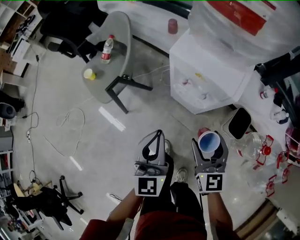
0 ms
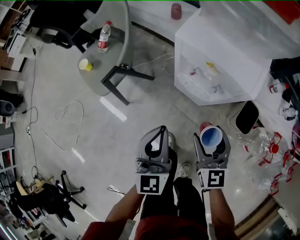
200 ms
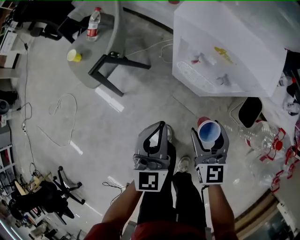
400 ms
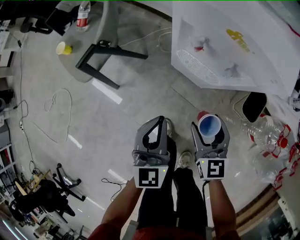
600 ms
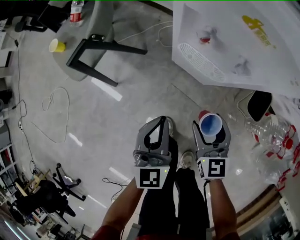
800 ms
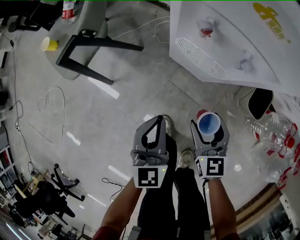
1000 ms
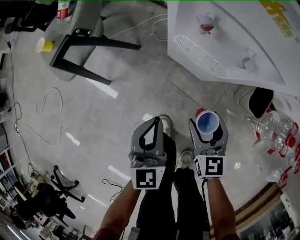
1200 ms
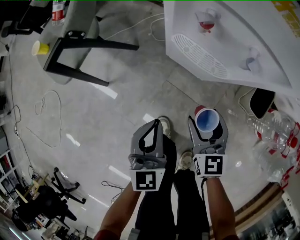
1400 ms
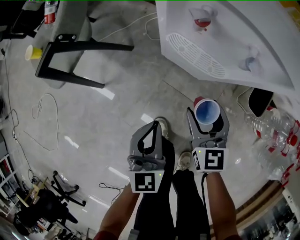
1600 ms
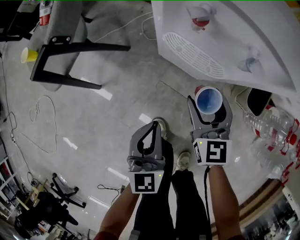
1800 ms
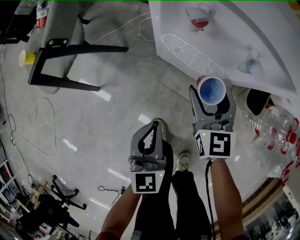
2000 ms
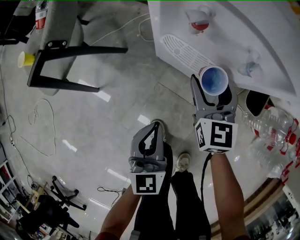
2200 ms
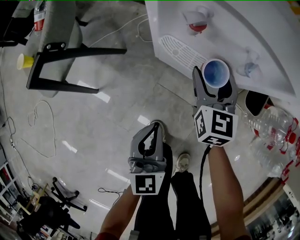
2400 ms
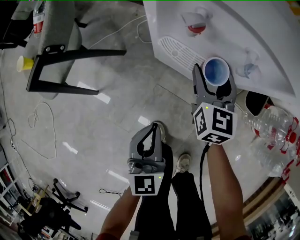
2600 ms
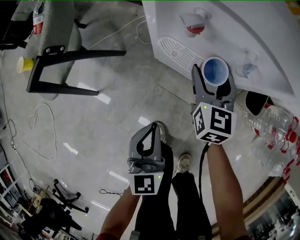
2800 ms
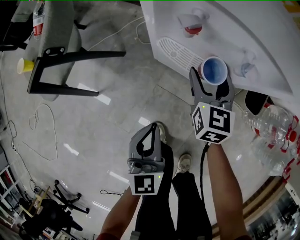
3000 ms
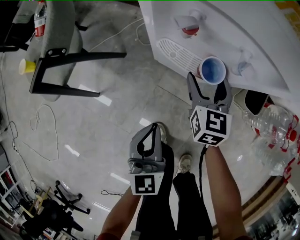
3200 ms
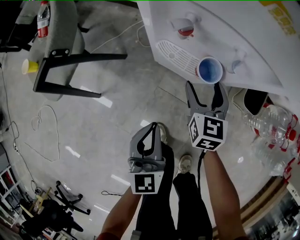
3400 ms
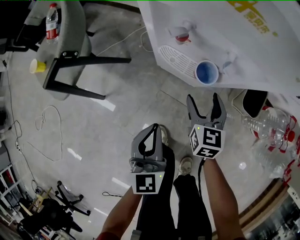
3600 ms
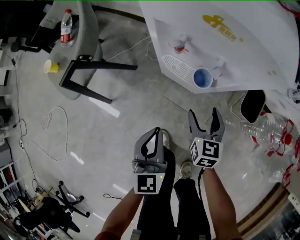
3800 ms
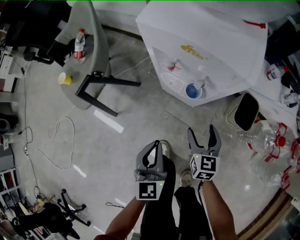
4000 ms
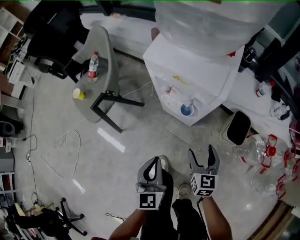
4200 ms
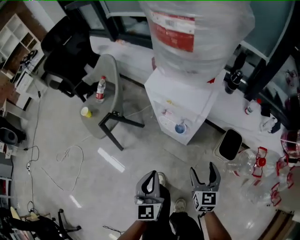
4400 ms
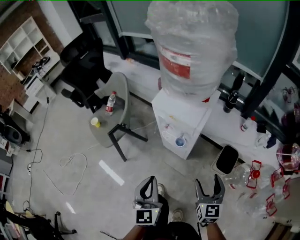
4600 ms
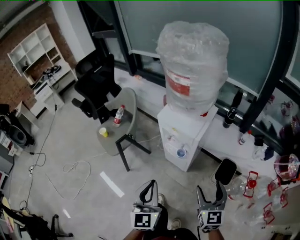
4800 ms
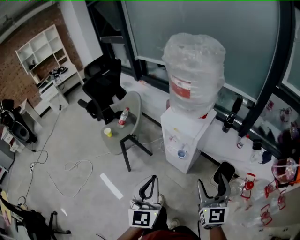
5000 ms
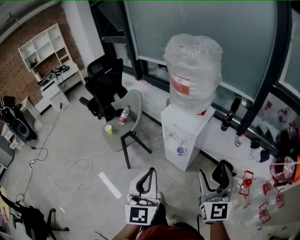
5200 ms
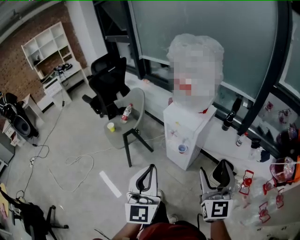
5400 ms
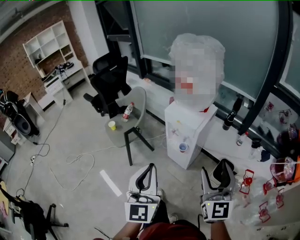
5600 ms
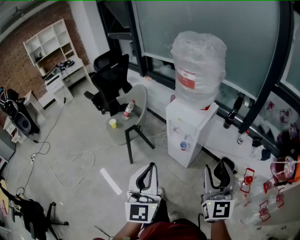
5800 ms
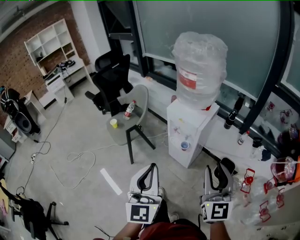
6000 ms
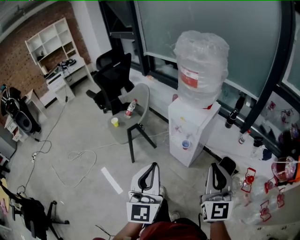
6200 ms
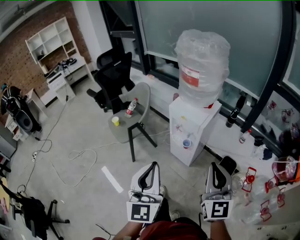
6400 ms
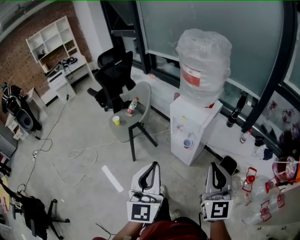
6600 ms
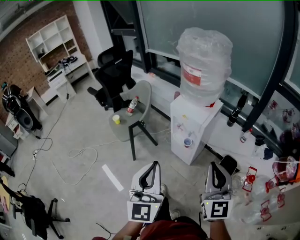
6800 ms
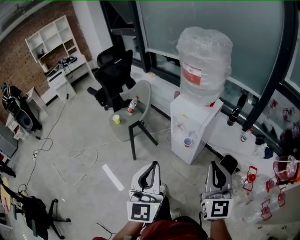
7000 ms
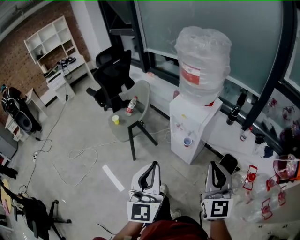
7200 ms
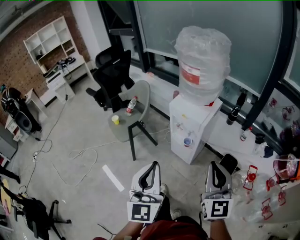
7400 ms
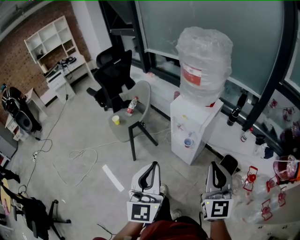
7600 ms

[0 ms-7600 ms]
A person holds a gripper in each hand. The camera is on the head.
0 ms to 1600 ms: Both grippers move downward, roughly 35 cm.
1600 ms to 3000 ms: The right gripper heads forward, covering some 15 cm.
3000 ms to 4600 ms: The right gripper travels upward and backward by roughly 40 cm. Meanwhile the left gripper travels upward by about 35 cm.
4600 ms to 6000 ms: The right gripper shifts approximately 25 cm upward, turns by some 30 degrees, and closes up, while the left gripper travels upward and backward by roughly 25 cm, and changes its angle by roughly 20 degrees.
6000 ms to 7600 ms: The right gripper closes.

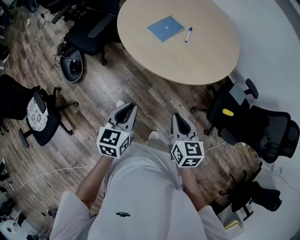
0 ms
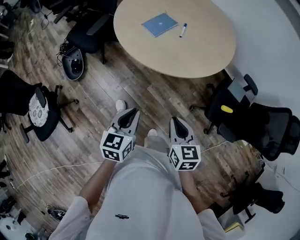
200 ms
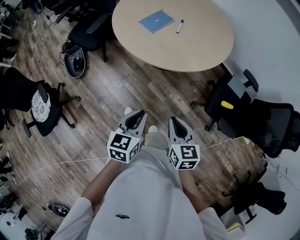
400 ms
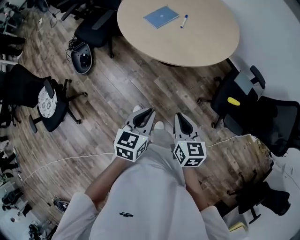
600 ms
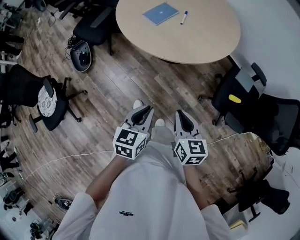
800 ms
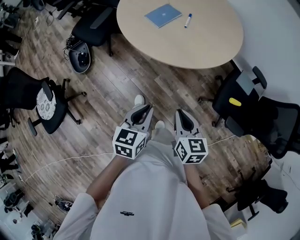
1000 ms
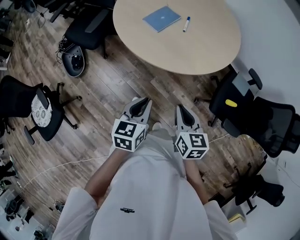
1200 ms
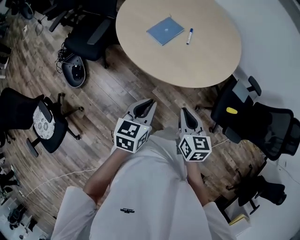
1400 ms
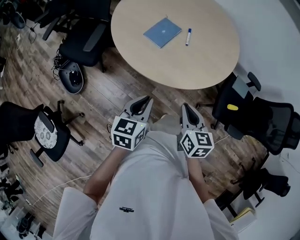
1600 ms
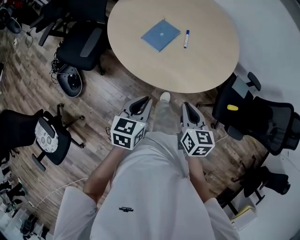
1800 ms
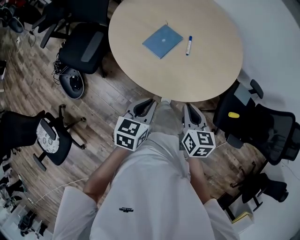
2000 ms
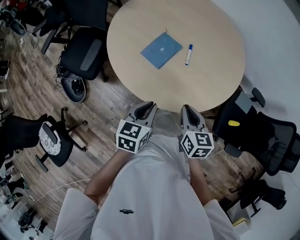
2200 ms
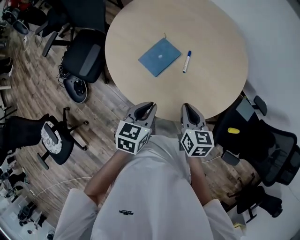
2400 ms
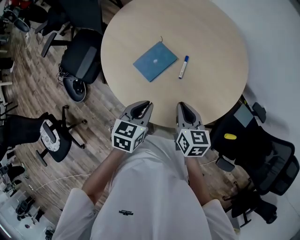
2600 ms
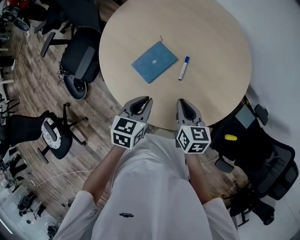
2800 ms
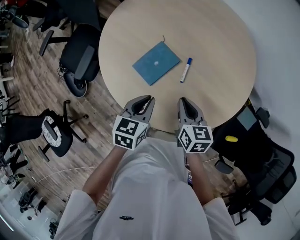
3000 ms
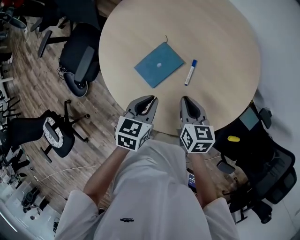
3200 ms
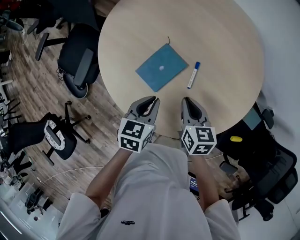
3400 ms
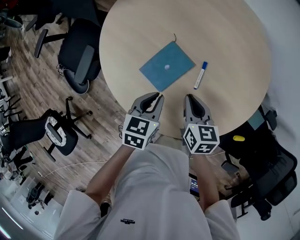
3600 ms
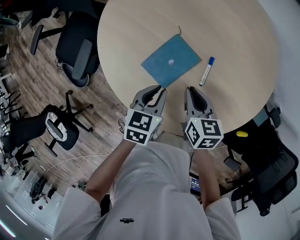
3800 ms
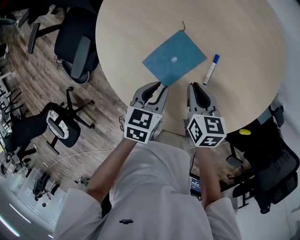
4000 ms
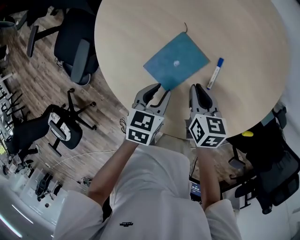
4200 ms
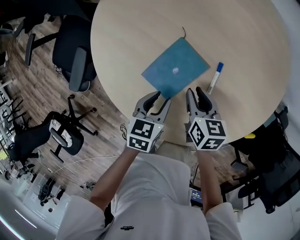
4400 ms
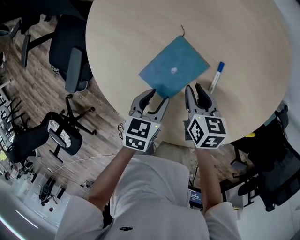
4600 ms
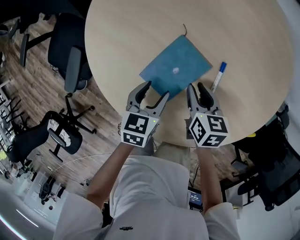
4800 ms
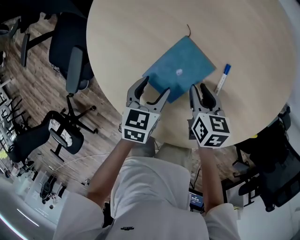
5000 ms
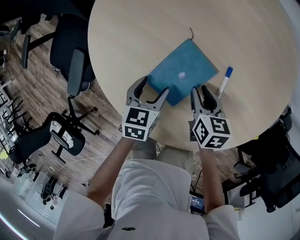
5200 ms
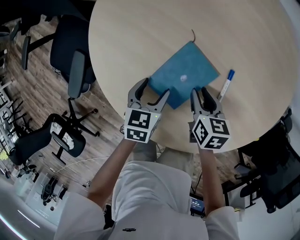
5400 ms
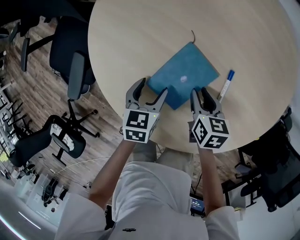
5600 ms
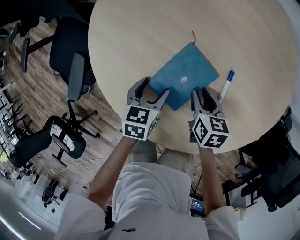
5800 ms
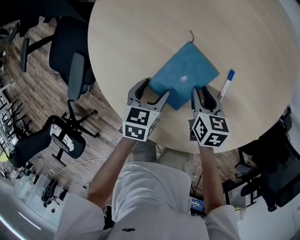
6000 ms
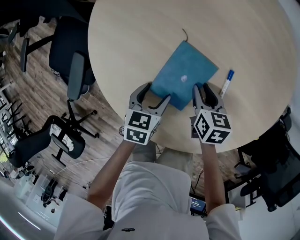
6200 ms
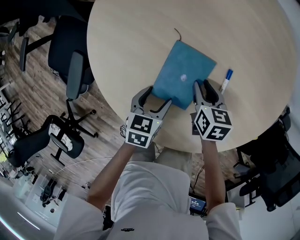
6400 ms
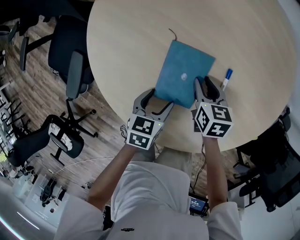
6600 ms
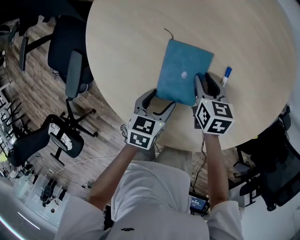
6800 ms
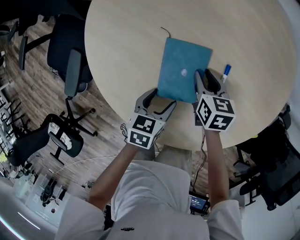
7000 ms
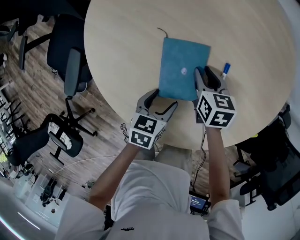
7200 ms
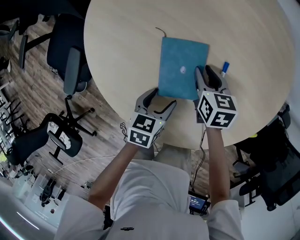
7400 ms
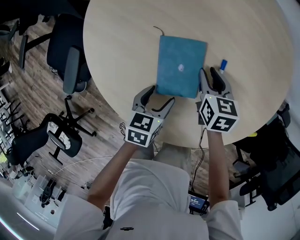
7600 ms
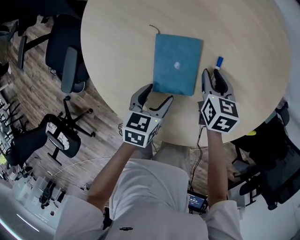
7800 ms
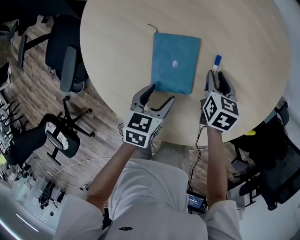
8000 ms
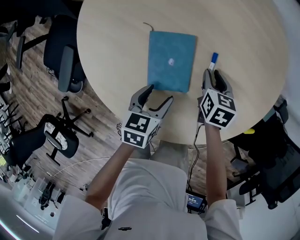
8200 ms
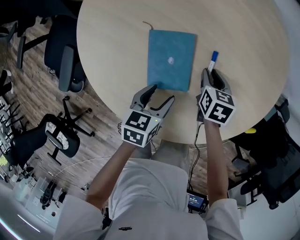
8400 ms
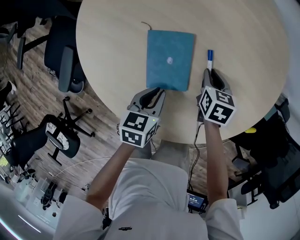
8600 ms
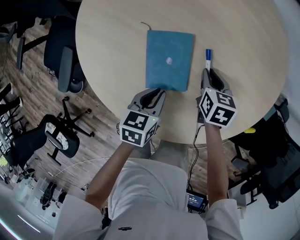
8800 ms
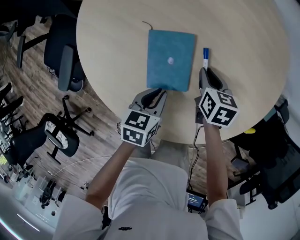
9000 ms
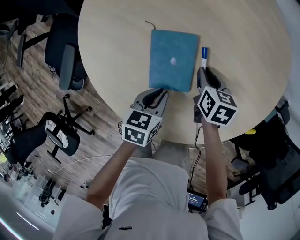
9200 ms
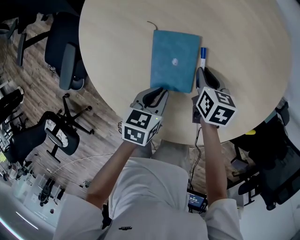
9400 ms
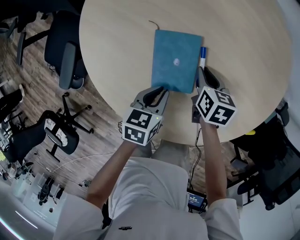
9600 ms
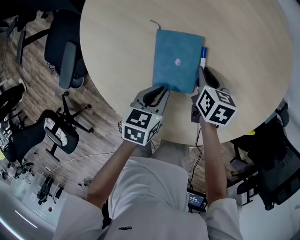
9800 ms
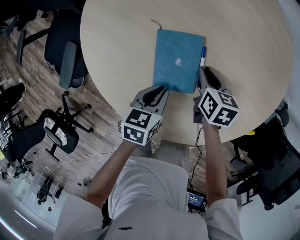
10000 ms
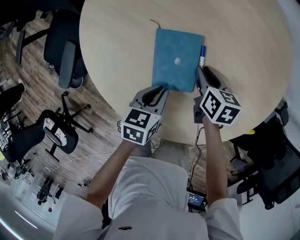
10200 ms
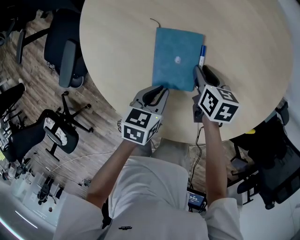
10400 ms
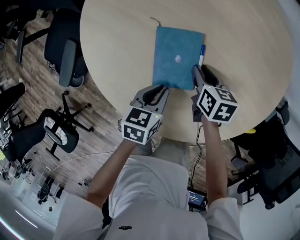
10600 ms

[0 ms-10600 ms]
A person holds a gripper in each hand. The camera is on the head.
0 ms to 1600 ms: Both grippers move forward, about 10 cm.
1600 ms to 3000 ms: The grippers both shift forward by about 35 cm.
3000 ms to 4600 ms: The right gripper shifts about 25 cm downward, forward and to the left; the left gripper goes roughly 20 cm downward and forward, and opens its fingers.
4600 ms to 6000 ms: The left gripper moves to the left, some 5 cm, and opens. Meanwhile the right gripper ends up about 5 cm from where it was.
6000 ms to 7600 ms: The left gripper heads to the right, covering about 5 cm. Meanwhile the right gripper changes place by approximately 5 cm.
7600 ms to 9000 ms: The left gripper closes.
9000 ms to 10600 ms: The right gripper ends up about 5 cm from where it was.

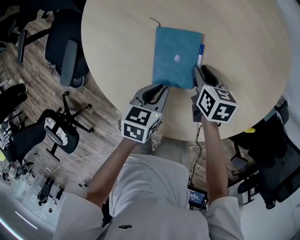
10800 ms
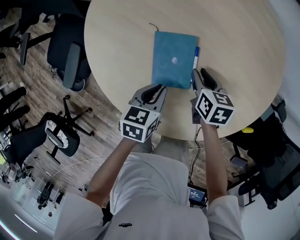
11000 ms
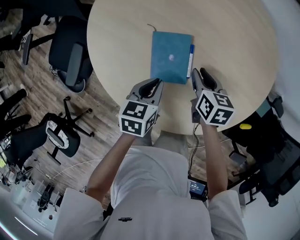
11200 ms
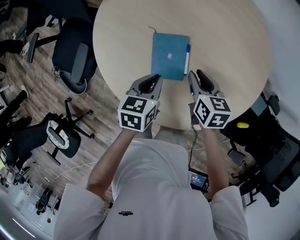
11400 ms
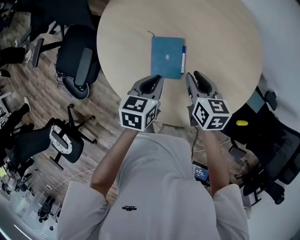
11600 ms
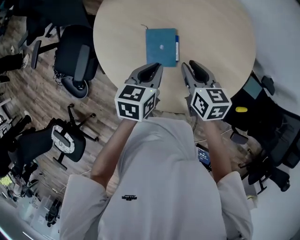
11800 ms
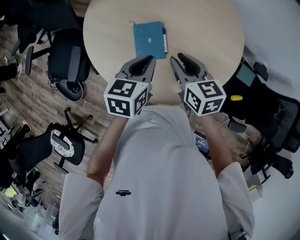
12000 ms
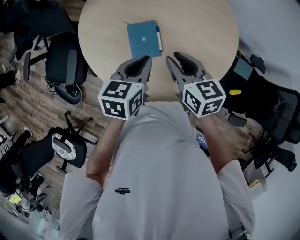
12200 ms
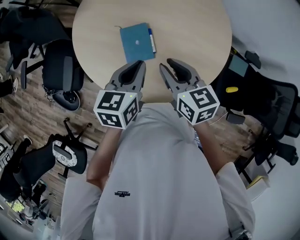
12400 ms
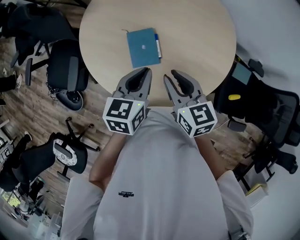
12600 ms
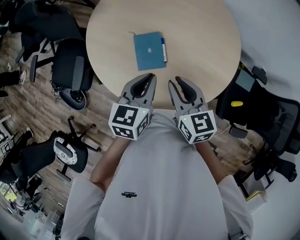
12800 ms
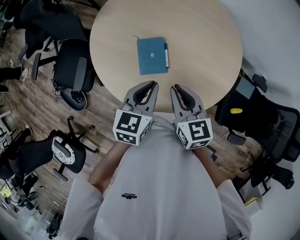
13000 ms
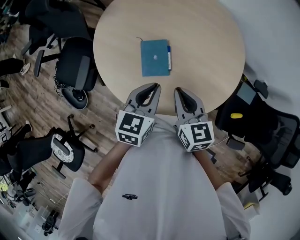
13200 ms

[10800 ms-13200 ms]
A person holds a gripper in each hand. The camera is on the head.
10800 ms to 12000 ms: The right gripper shifts some 30 cm upward and backward, and turns by some 20 degrees. Meanwhile the left gripper moves upward, approximately 25 cm.
12000 ms to 13200 ms: The right gripper heads backward, covering approximately 5 cm, and closes its fingers.

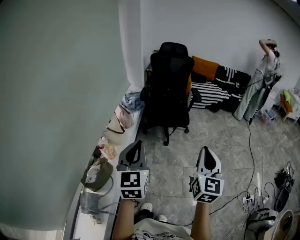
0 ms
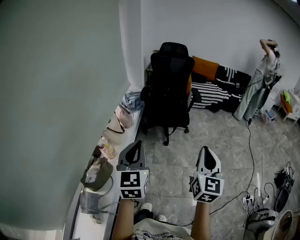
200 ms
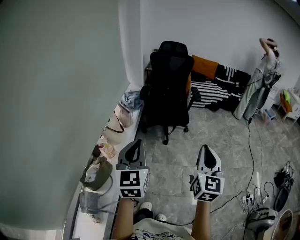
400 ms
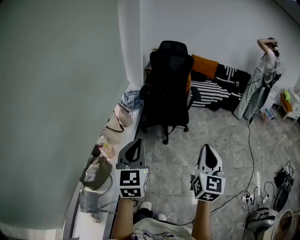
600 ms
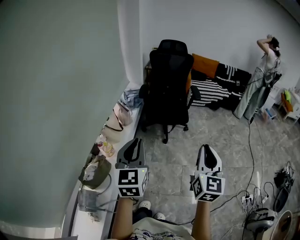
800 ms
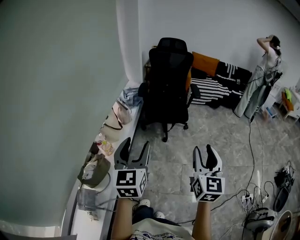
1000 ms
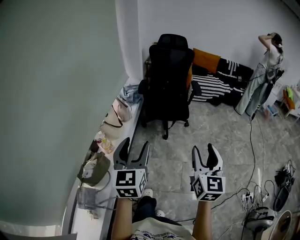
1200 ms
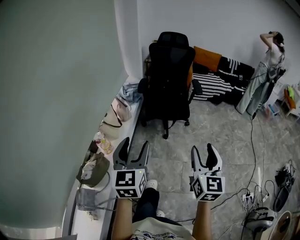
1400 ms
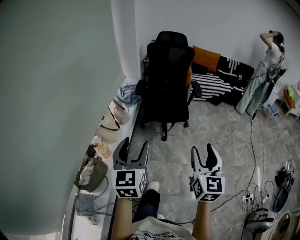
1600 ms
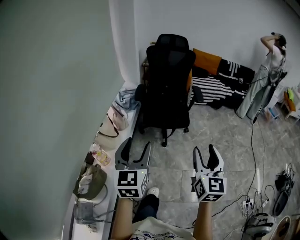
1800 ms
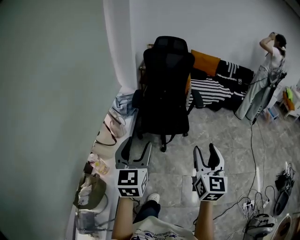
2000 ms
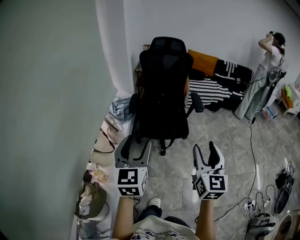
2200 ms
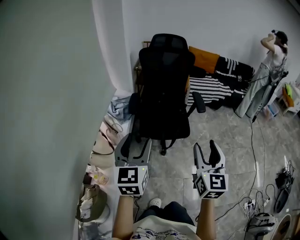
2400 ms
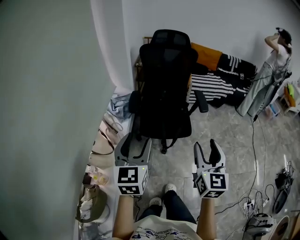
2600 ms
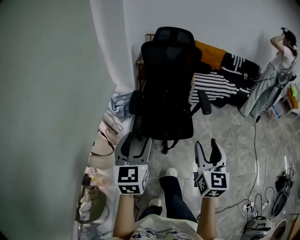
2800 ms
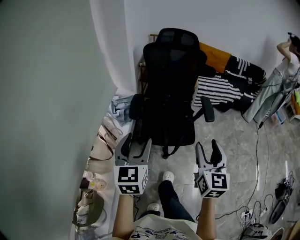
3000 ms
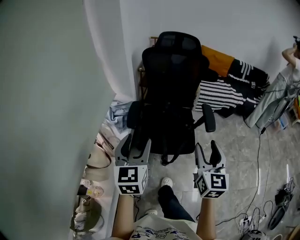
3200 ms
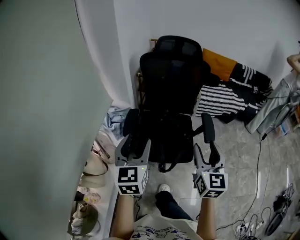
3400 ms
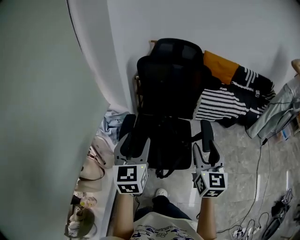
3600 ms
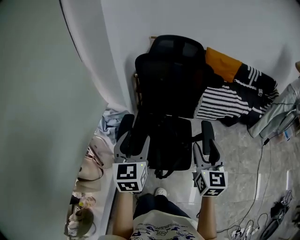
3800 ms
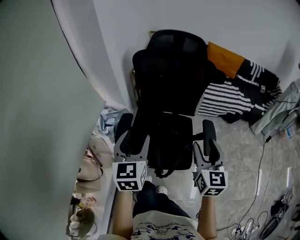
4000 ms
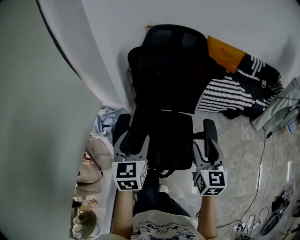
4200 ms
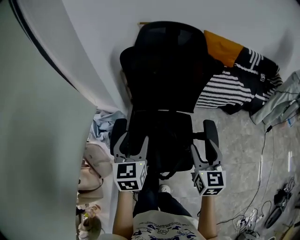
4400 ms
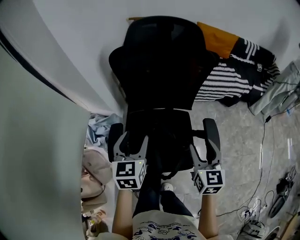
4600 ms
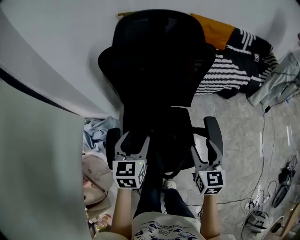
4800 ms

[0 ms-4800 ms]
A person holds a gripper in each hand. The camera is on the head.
0 ms to 1600 ms: The grippers both shift forward by approximately 10 cm. The left gripper opens its fingers; the right gripper opens its fingers.
1600 ms to 3200 ms: The two grippers travel together, forward, roughly 50 cm.
3200 ms to 4800 ms: The right gripper moves forward and downward, about 40 cm. The left gripper heads forward, covering some 40 cm, and swivels about 20 degrees.
